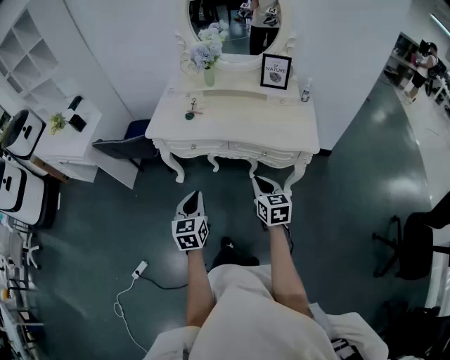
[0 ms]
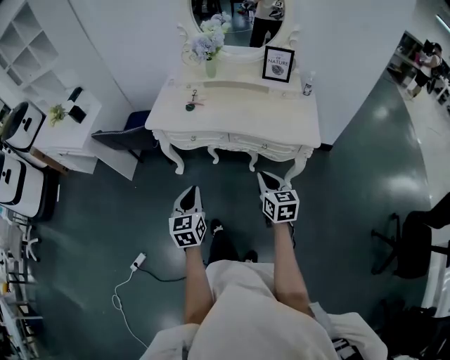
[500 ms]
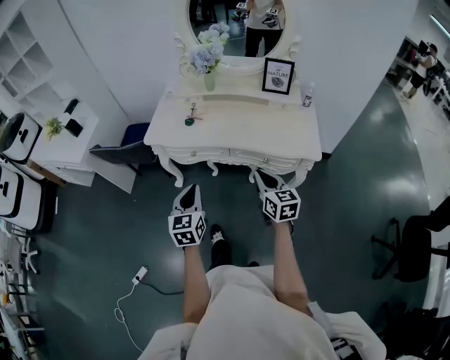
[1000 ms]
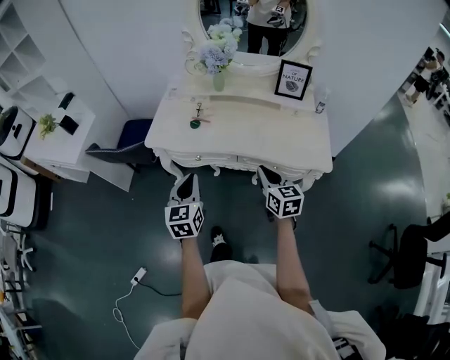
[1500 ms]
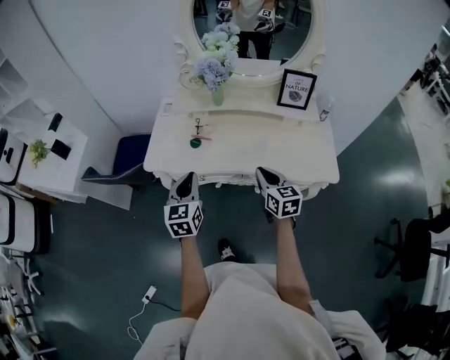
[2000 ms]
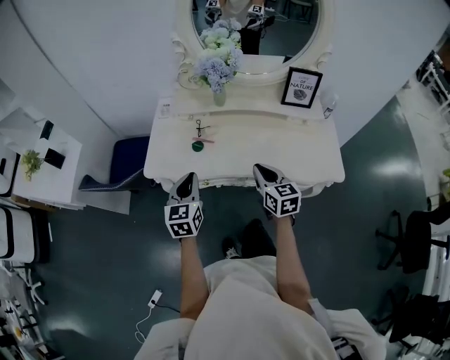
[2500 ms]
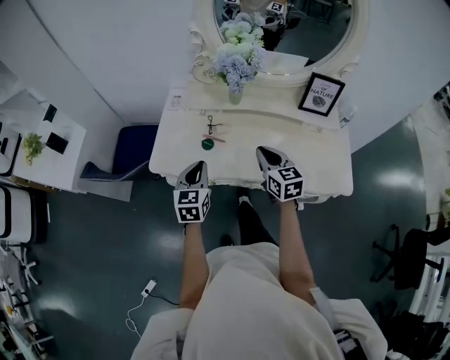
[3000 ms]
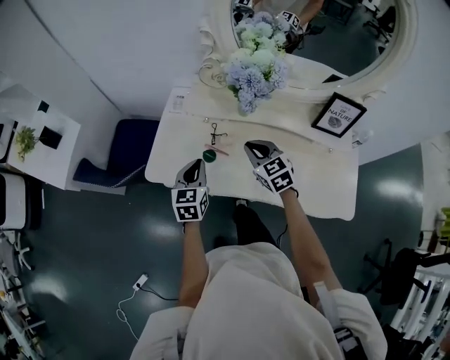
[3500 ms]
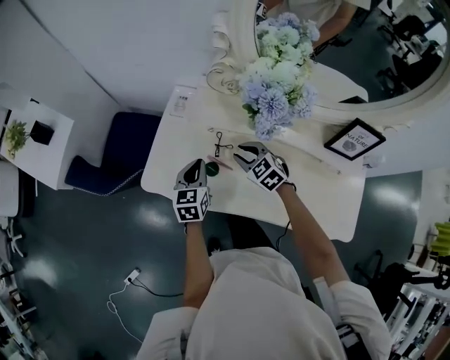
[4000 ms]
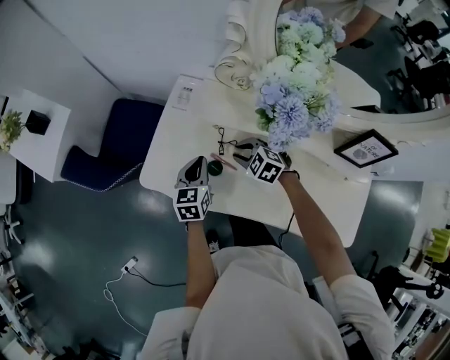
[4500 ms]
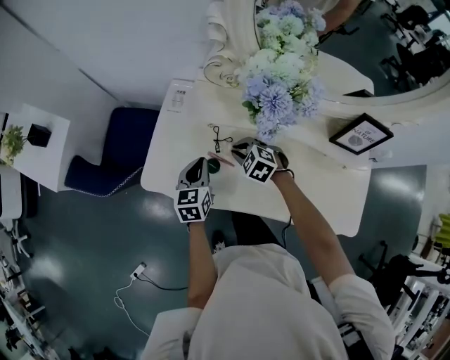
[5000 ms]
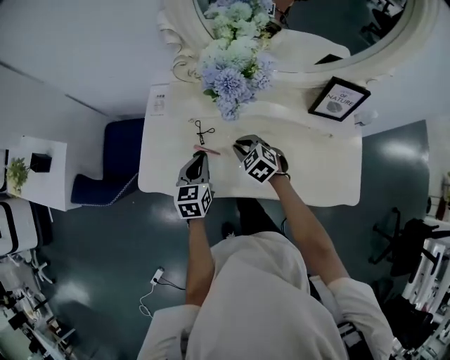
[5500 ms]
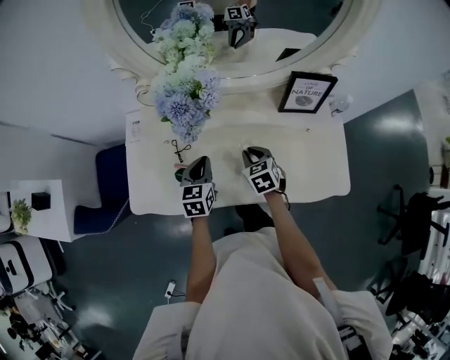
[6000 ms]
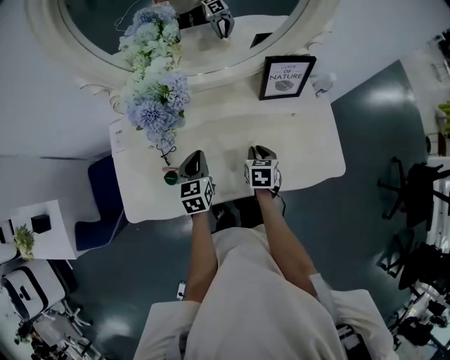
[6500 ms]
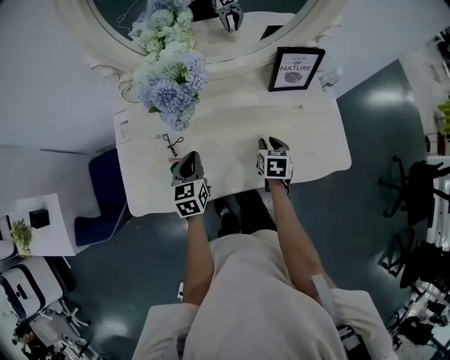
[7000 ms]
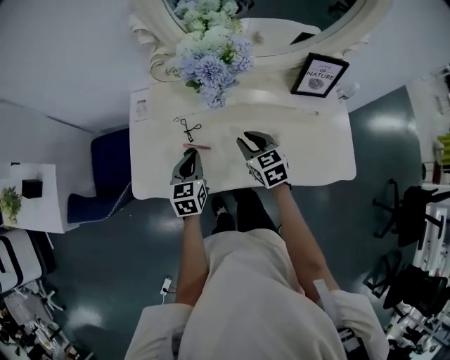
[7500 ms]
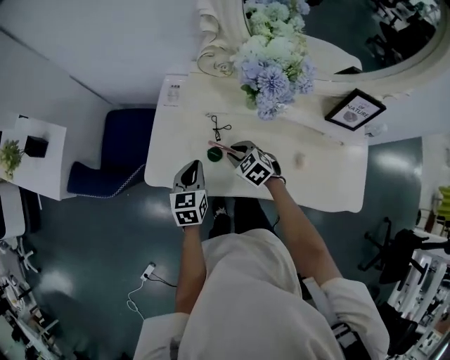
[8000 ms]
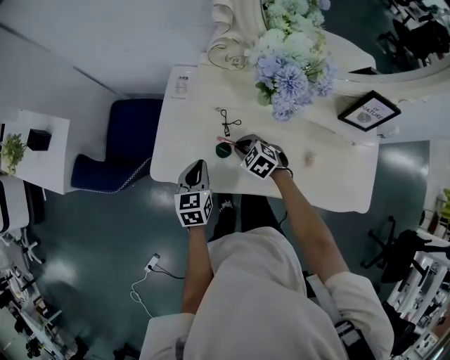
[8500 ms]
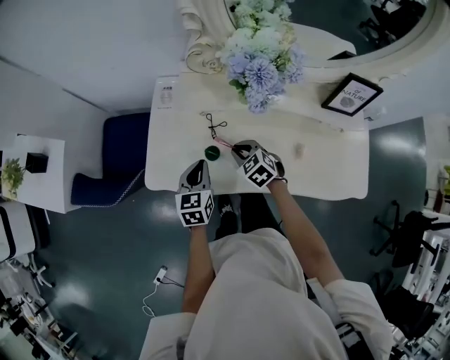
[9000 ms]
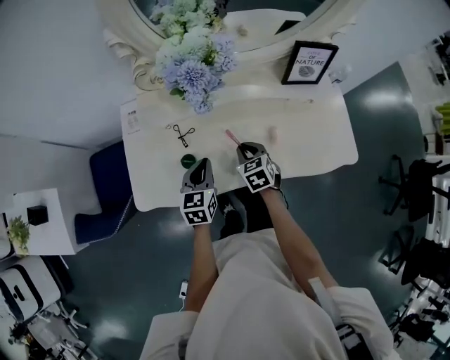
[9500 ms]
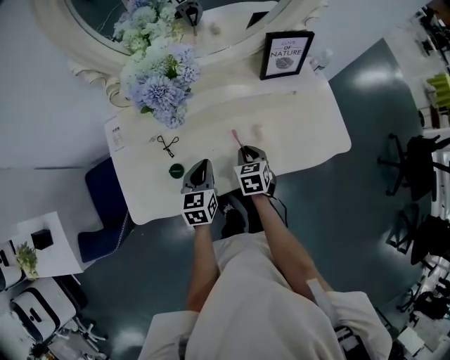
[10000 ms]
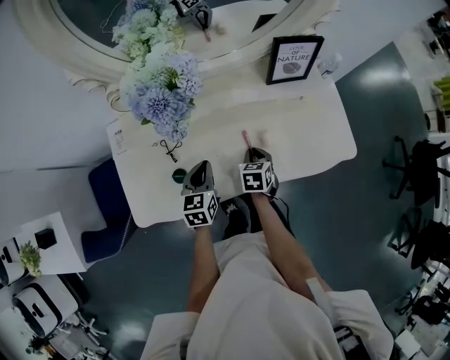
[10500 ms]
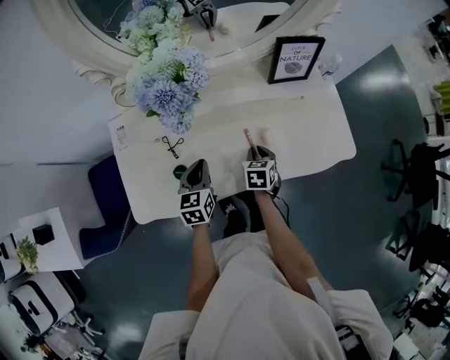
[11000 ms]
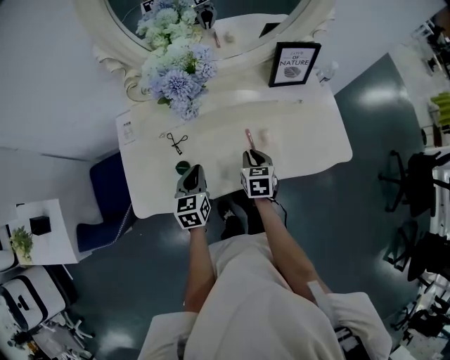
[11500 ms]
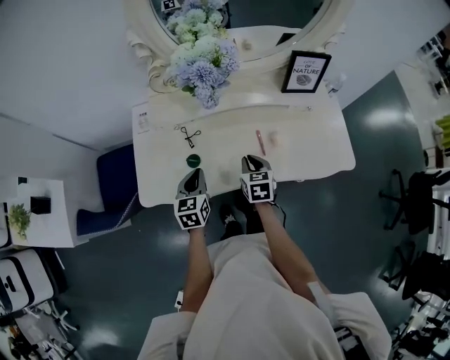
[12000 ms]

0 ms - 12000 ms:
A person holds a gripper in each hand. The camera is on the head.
0 ms - 2000 ms: Both grippers move forward, some 30 cm.
2000 ms - 4000 ms: The left gripper moves forward and downward, about 30 cm. Meanwhile the right gripper moves forward, about 35 cm, rotates some 60 degrees, and opens up.
4000 ms - 6000 ms: The right gripper changes place by roughly 20 cm, and swivels some 50 degrees. The left gripper ends up some 15 cm from where it was.
6000 ms - 8000 ms: The right gripper shifts by approximately 25 cm, and turns by some 40 degrees; the left gripper moves about 20 cm.
8000 ms - 10000 ms: The right gripper changes place by about 20 cm, and changes its angle by approximately 60 degrees; the left gripper ends up about 20 cm from where it was, and swivels some 20 degrees.
10000 ms - 12000 ms: The left gripper shifts roughly 10 cm to the left and backward. The right gripper moves roughly 10 cm.

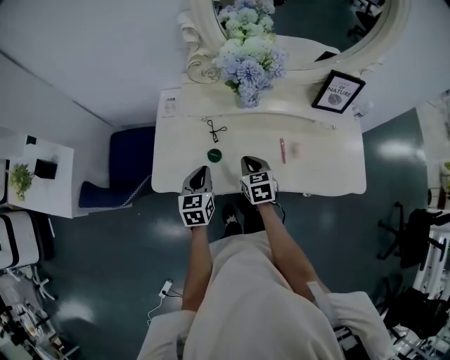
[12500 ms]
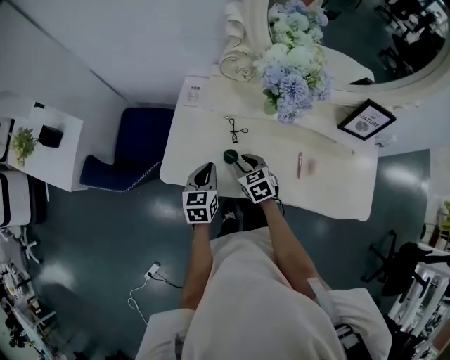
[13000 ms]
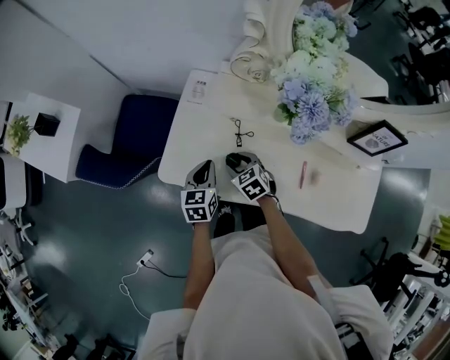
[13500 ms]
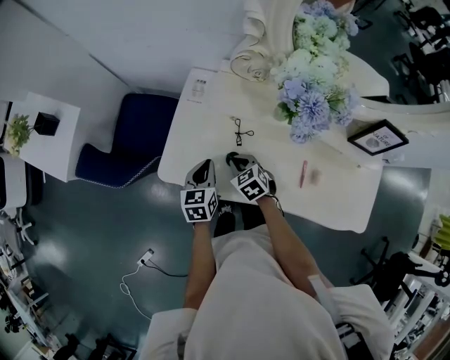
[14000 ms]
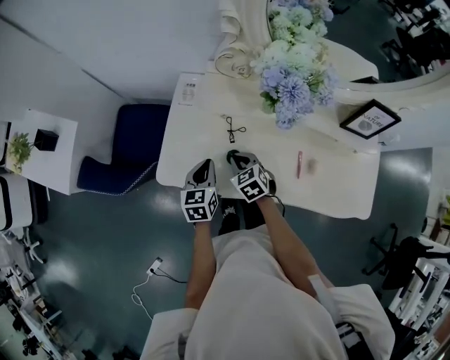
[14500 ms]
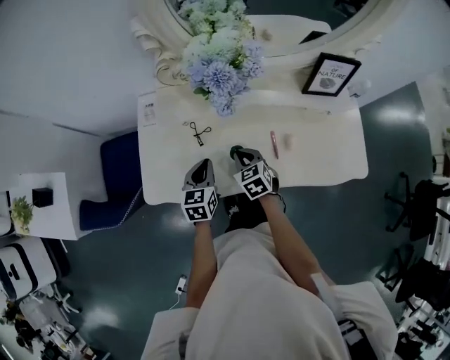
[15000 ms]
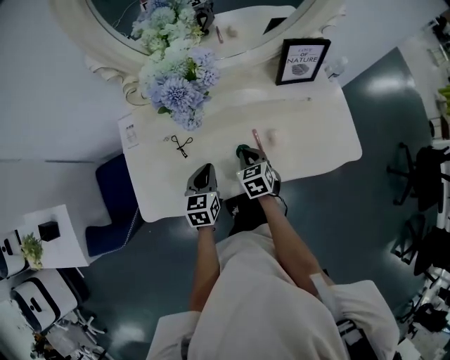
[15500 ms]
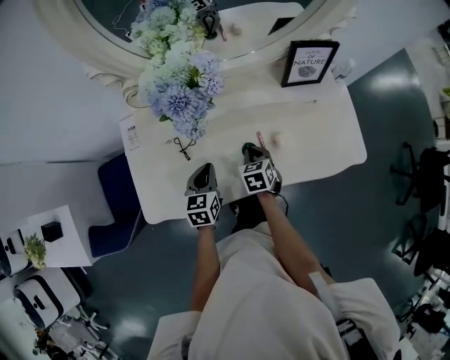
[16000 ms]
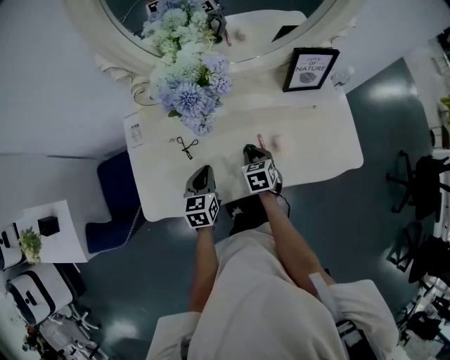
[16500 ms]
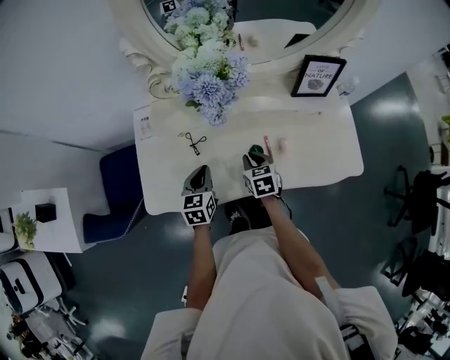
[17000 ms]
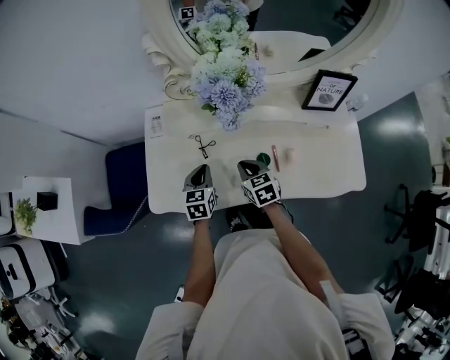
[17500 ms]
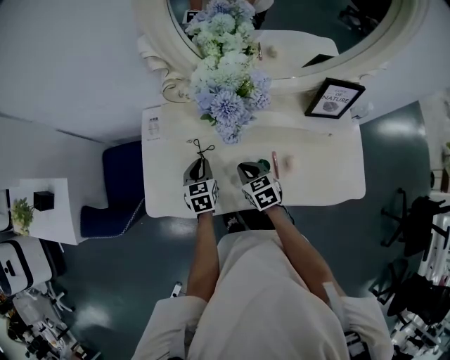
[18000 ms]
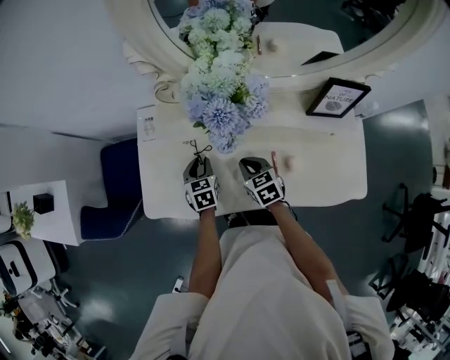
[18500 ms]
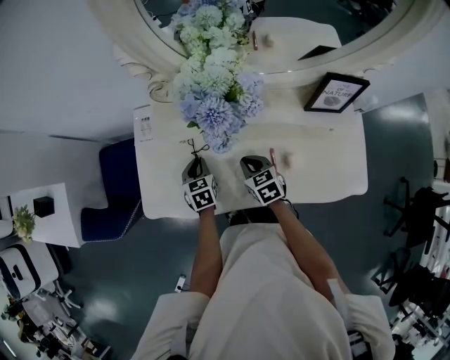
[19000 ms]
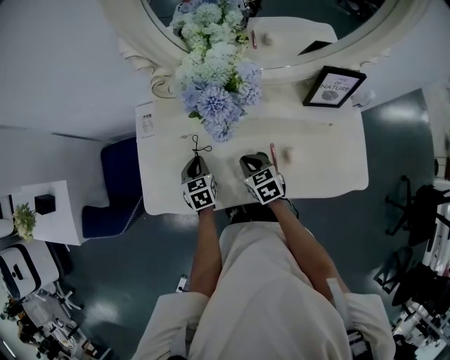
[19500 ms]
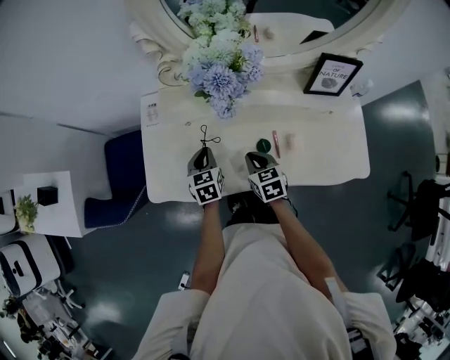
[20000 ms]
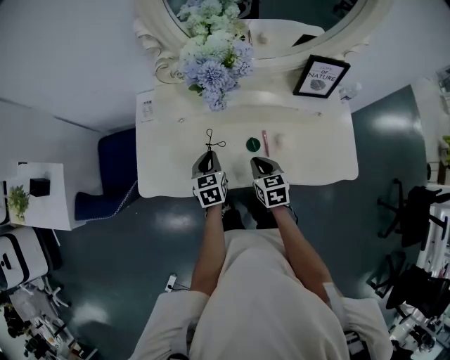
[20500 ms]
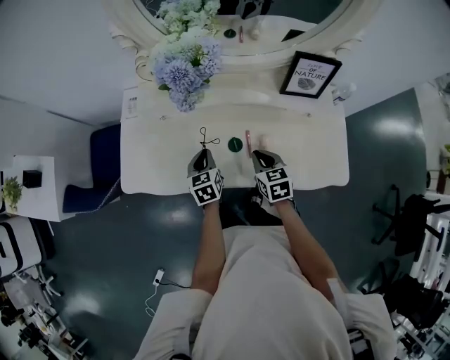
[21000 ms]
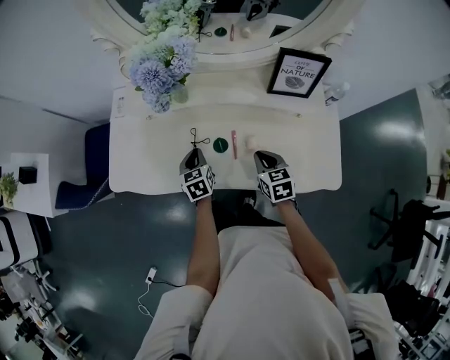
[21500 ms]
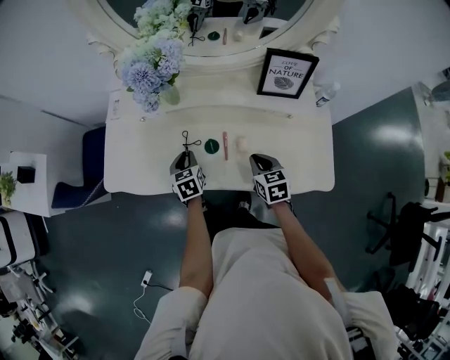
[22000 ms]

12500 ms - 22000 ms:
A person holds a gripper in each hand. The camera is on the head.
12500 ms - 14500 ms: The left gripper moves forward, some 5 cm, while the right gripper goes some 10 cm to the left and forward, swivels roughly 30 degrees, and opens, then closes once more.
14500 ms - 16500 ms: The left gripper moves approximately 15 cm, and swivels roughly 20 degrees. Meanwhile the right gripper changes place by some 25 cm, and changes its angle by roughly 40 degrees.
16500 ms - 18000 ms: The left gripper goes about 10 cm to the left and forward. The right gripper moves to the left, roughly 10 cm, and rotates some 20 degrees.
18000 ms - 20000 ms: There are only small adjustments of the grippers.
20000 ms - 22000 ms: The left gripper heads to the right and backward, covering some 15 cm. The right gripper shifts roughly 20 cm to the right.

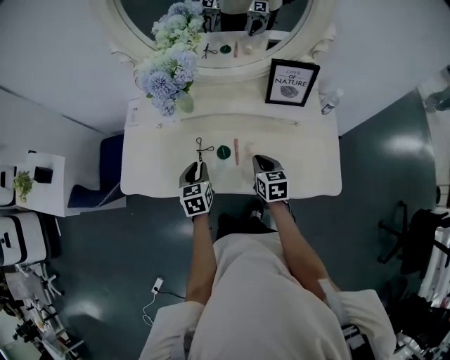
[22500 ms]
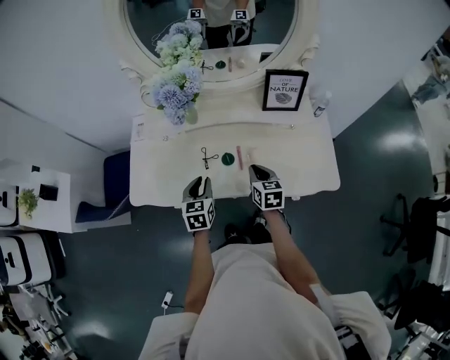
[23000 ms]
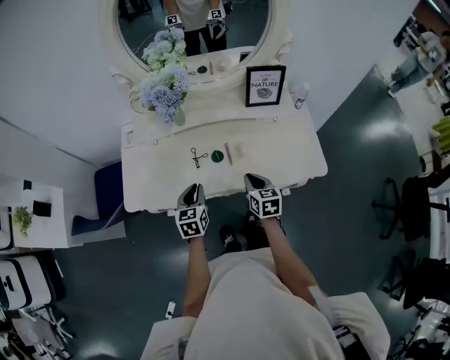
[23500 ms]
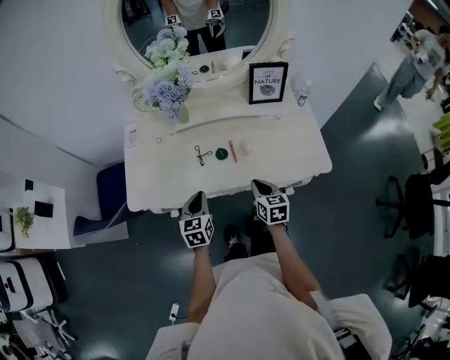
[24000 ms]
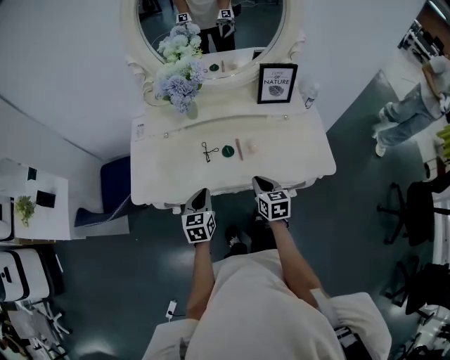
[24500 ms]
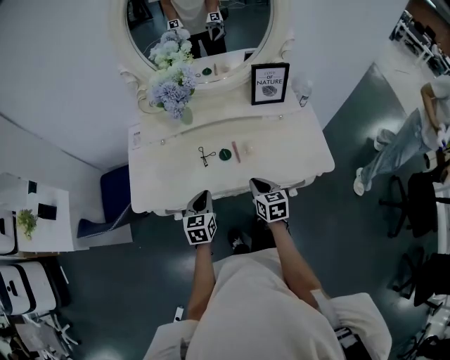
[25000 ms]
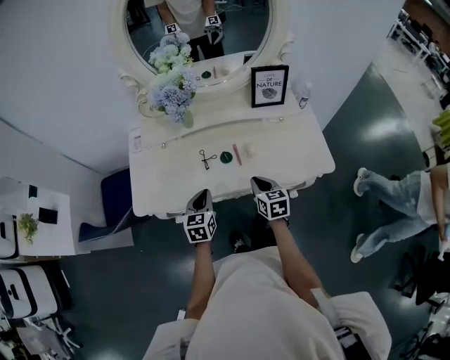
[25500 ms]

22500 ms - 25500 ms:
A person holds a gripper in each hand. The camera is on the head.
22500 ms - 24000 ms: Both grippers move backward, about 10 cm.
24000 ms - 25500 ms: The grippers stay close to where they were, moving slightly.

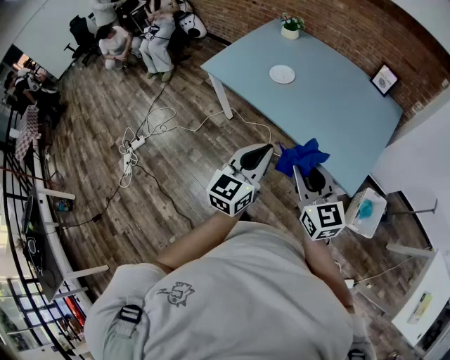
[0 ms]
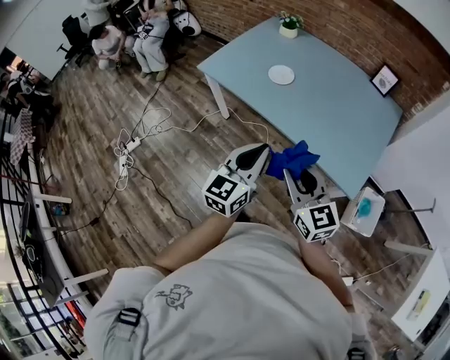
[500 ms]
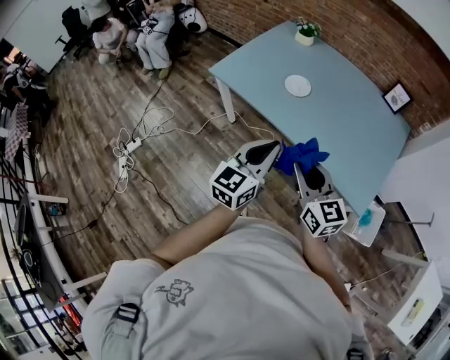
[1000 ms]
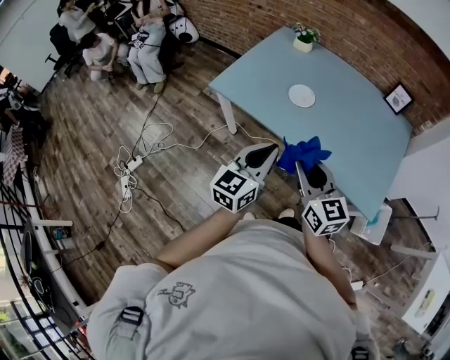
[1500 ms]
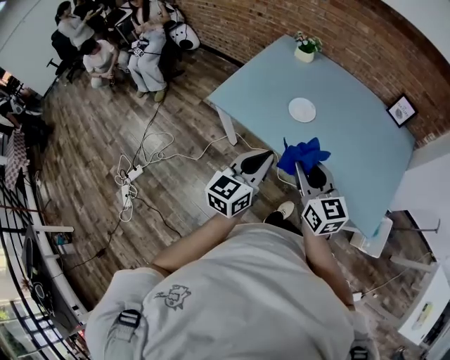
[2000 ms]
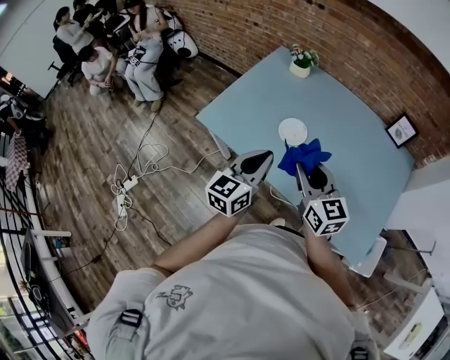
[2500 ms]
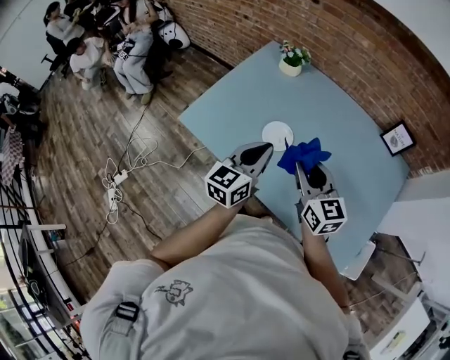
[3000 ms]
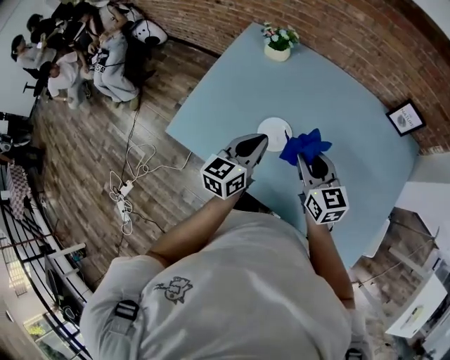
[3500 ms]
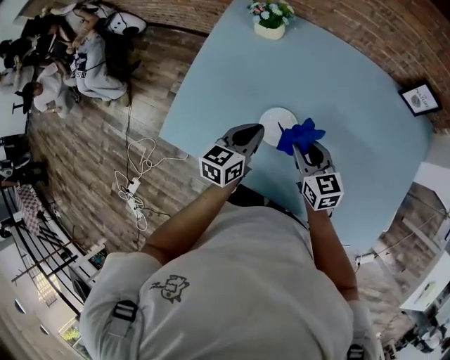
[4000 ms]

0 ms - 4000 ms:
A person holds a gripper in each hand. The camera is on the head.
0 ms - 2000 ms: The two grippers go approximately 30 cm forward and to the left.
2000 ms - 4000 ms: The grippers both shift forward and downward by approximately 40 cm. The left gripper swivels approximately 30 degrees.
